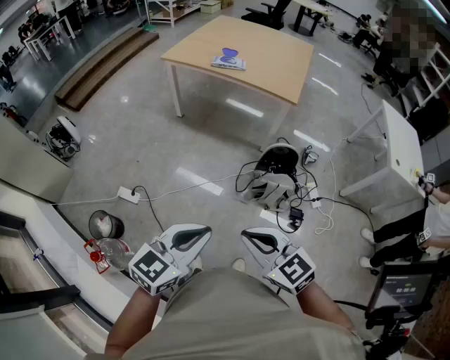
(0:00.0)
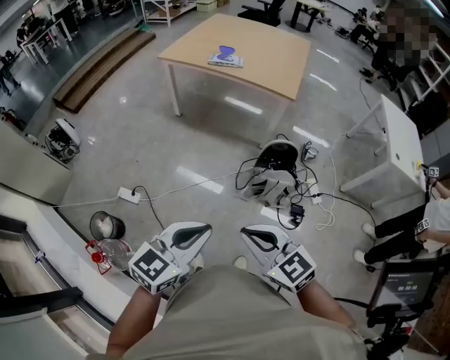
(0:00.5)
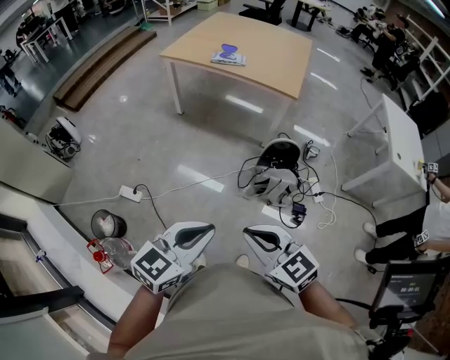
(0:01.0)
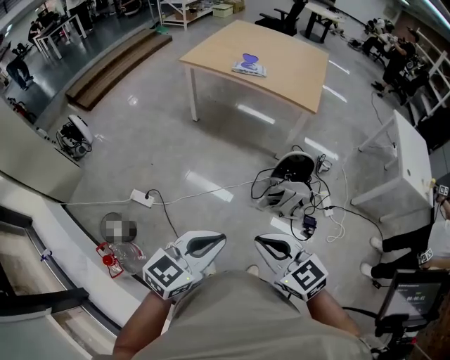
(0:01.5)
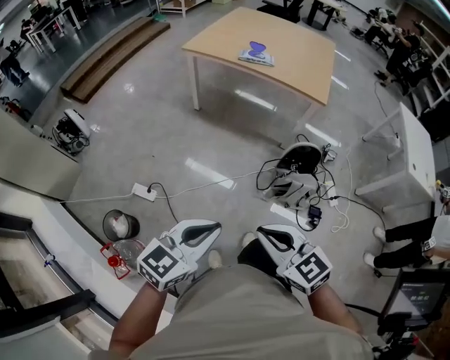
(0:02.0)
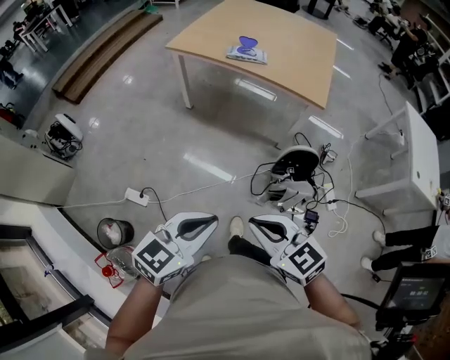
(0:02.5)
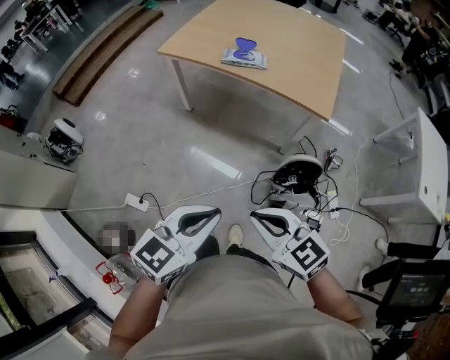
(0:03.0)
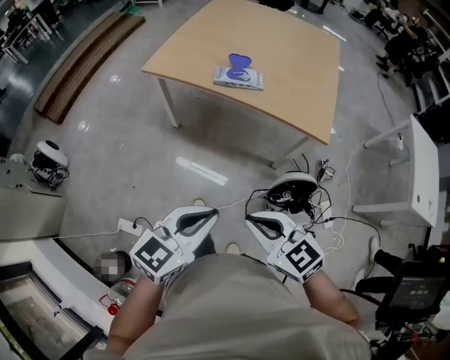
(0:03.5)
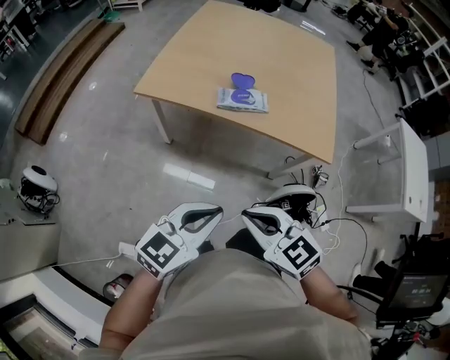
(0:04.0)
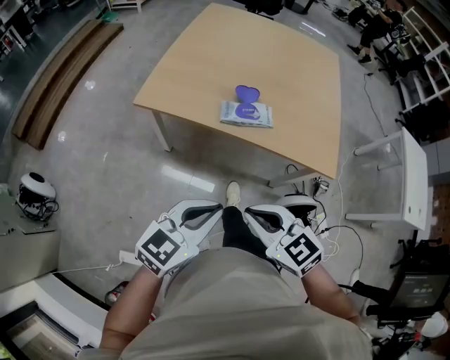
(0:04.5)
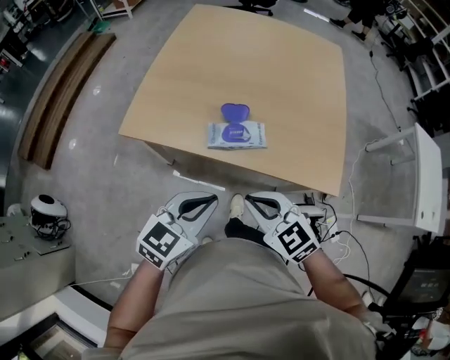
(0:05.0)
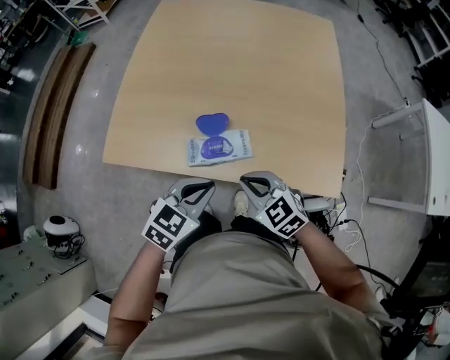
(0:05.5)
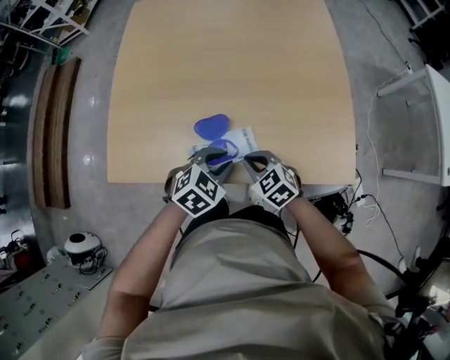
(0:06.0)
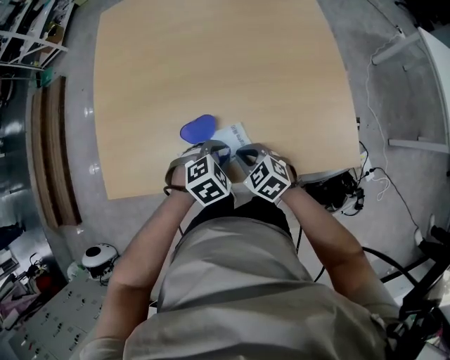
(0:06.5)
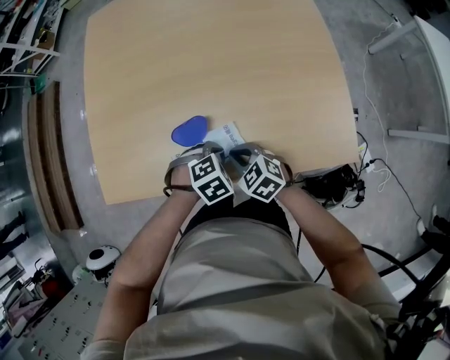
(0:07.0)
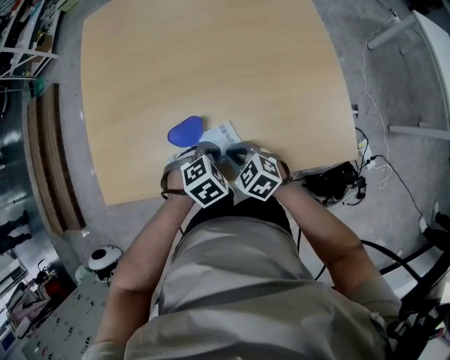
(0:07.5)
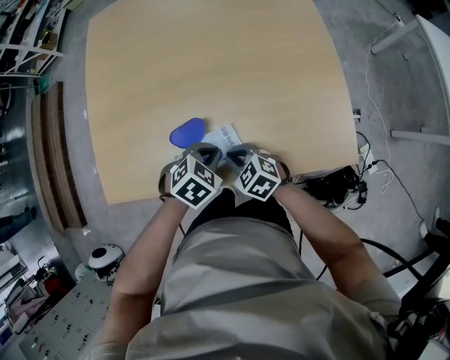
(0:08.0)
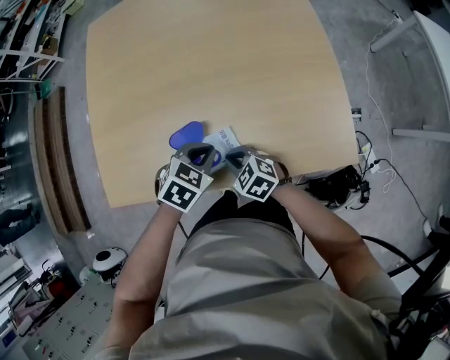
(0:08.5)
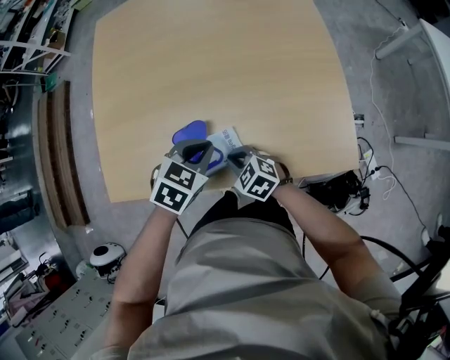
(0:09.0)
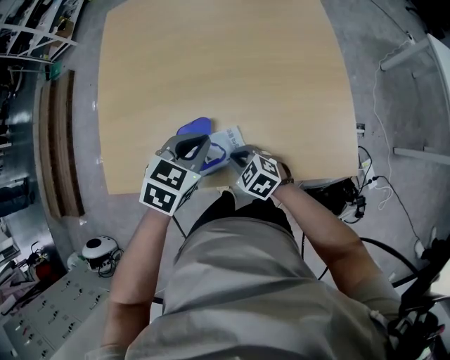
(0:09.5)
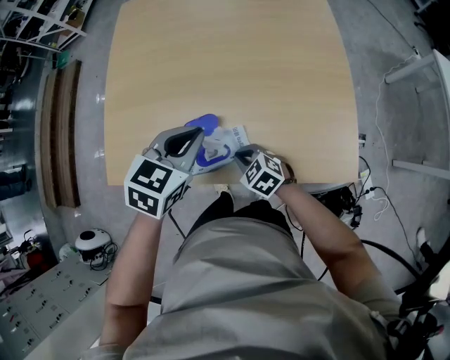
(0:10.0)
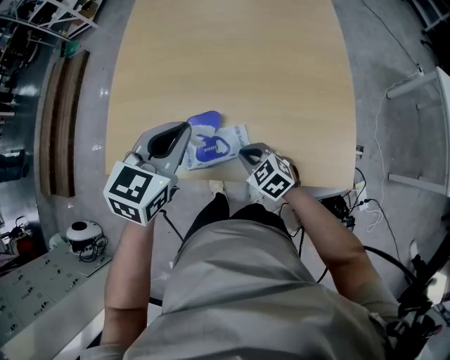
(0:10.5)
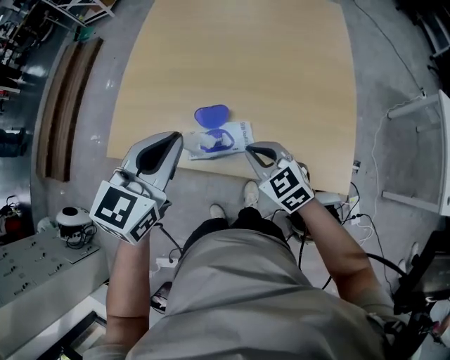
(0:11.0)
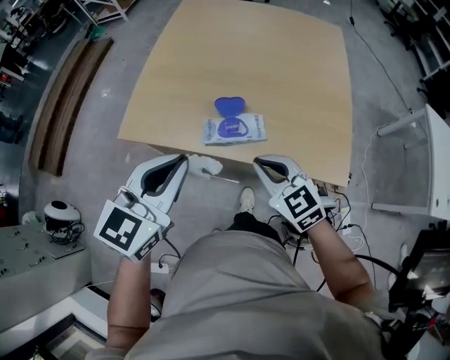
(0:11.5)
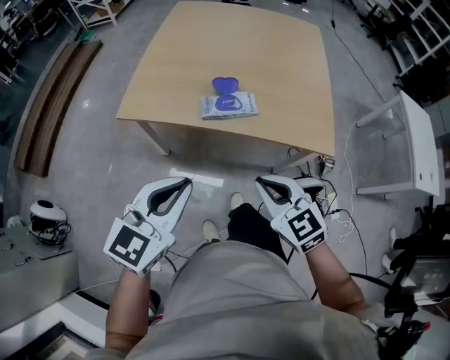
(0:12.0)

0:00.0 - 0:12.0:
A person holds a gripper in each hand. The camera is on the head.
0:00.0 - 0:02.0: The grippers both shift to the left and forward by some 15 cm.
0:02.0 - 0:04.0: The pair of grippers is taken forward, roughly 60 cm.
0:04.0 - 0:06.0: The two grippers travel together, forward, roughly 50 cm. The left gripper points its fingers approximately 40 degrees further downward, and opens its fingers, while the right gripper heads downward, covering approximately 25 cm, and turns by roughly 20 degrees.
0:06.0 - 0:08.0: Both grippers move downward, approximately 5 cm.
0:08.0 - 0:10.0: The left gripper is displaced upward by some 15 cm, and changes its angle by approximately 30 degrees.
0:10.0 - 0:12.0: The left gripper moves backward and to the left, about 50 cm, and changes its angle by approximately 30 degrees, while the right gripper travels backward and upward by about 40 cm, and turns by approximately 20 degrees.

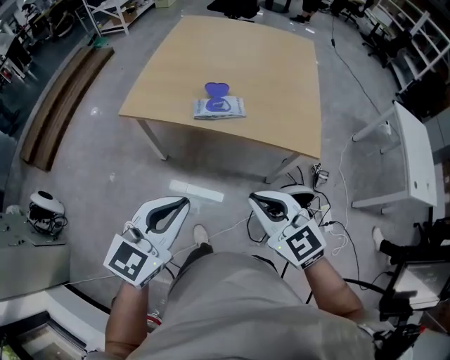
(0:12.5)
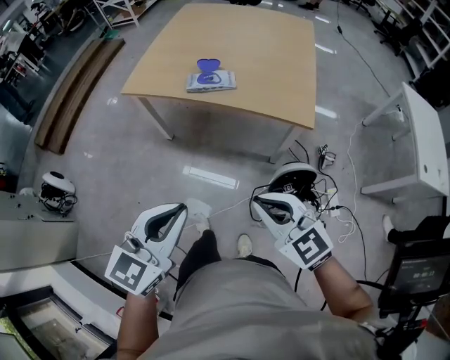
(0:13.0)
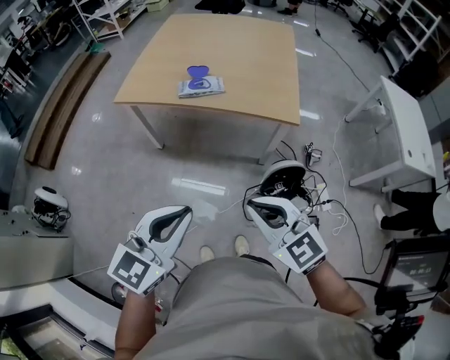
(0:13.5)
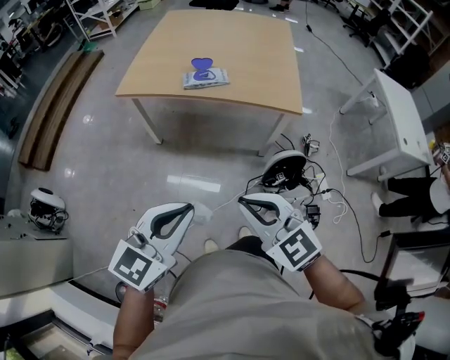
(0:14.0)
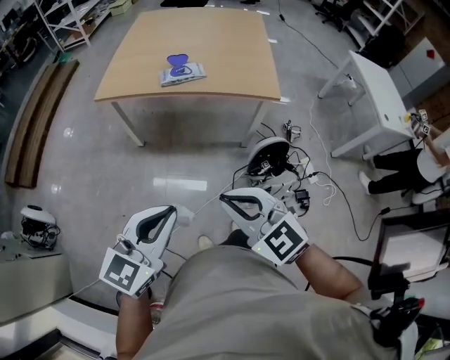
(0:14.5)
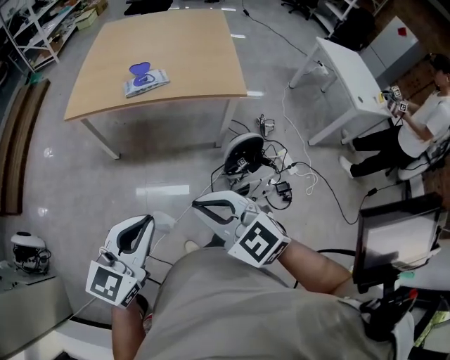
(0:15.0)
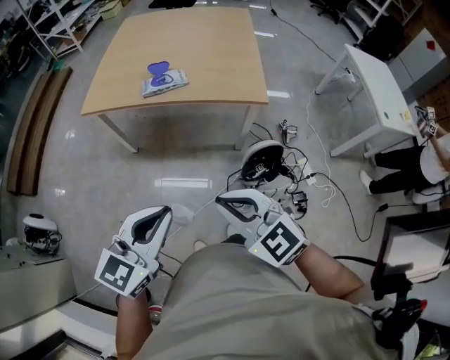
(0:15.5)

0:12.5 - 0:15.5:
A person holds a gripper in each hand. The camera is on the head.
0:12.5 - 0:14.0: Both grippers move backward, some 25 cm.
0:14.0 - 0:15.5: The grippers move only a little.

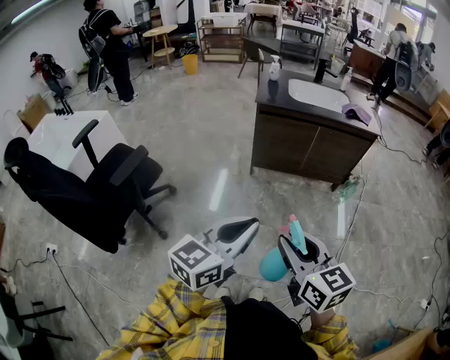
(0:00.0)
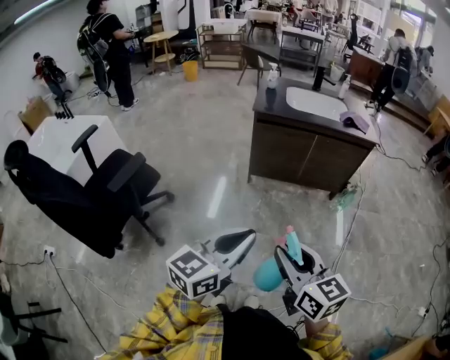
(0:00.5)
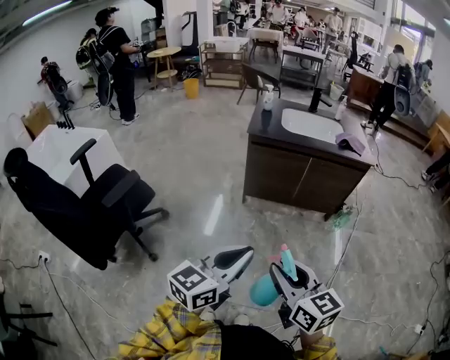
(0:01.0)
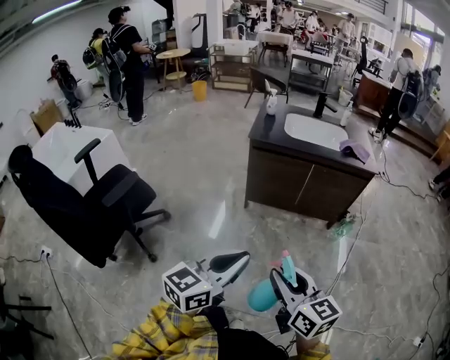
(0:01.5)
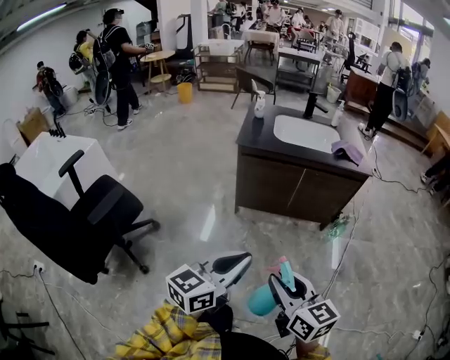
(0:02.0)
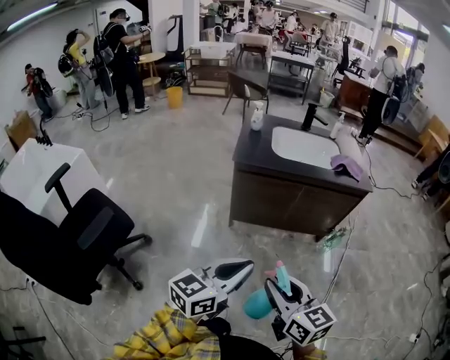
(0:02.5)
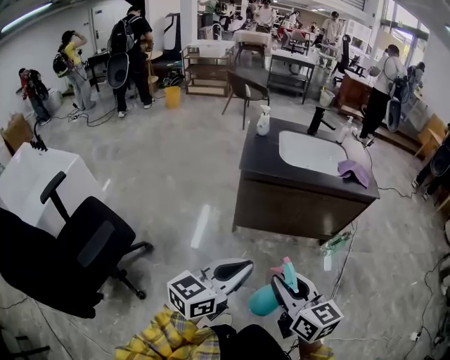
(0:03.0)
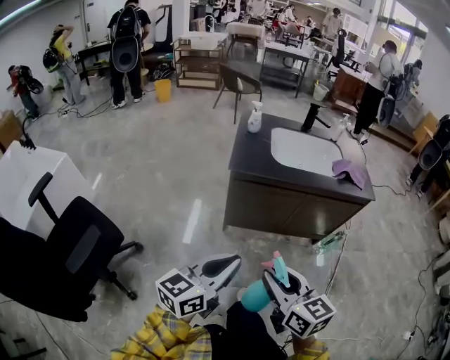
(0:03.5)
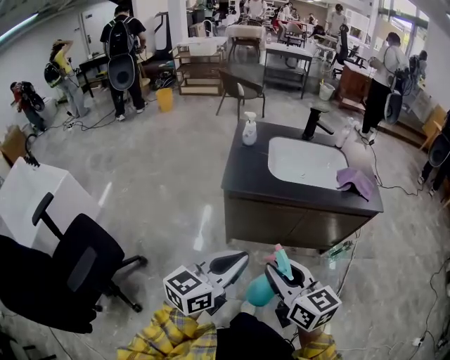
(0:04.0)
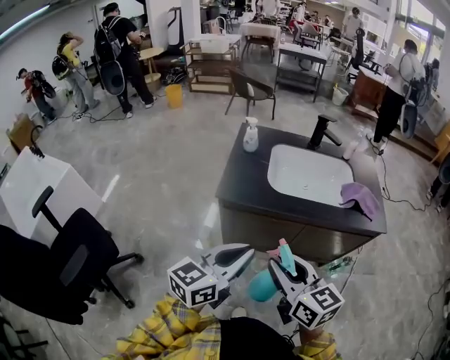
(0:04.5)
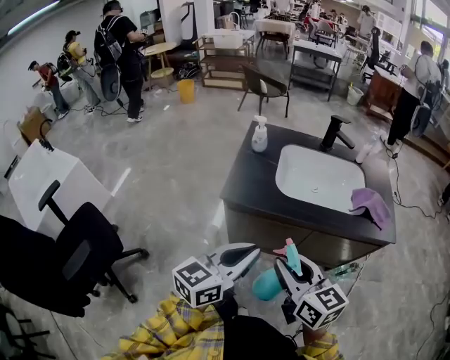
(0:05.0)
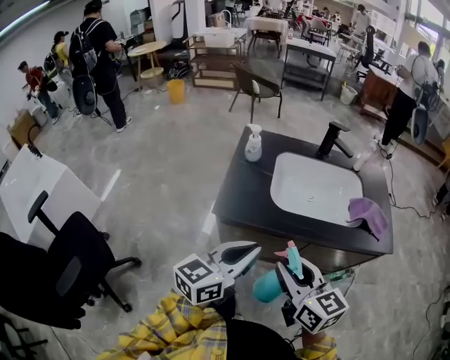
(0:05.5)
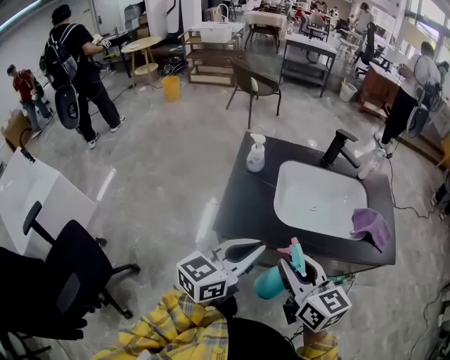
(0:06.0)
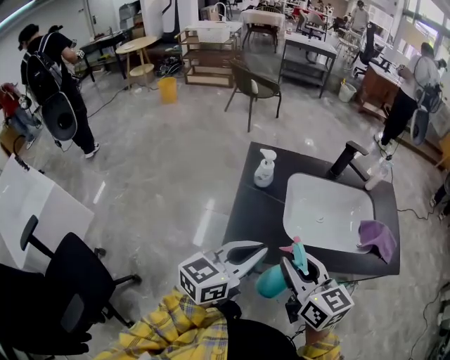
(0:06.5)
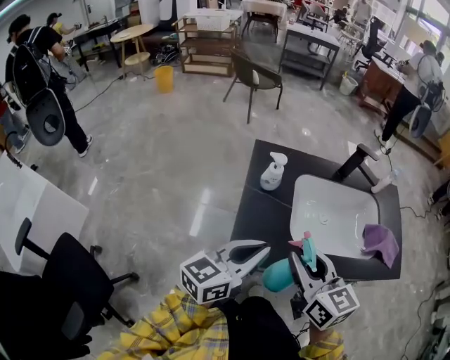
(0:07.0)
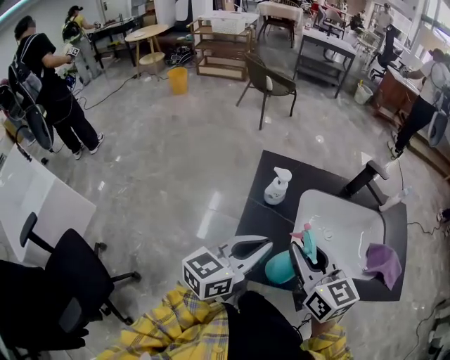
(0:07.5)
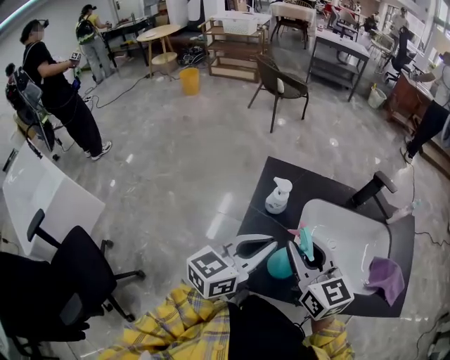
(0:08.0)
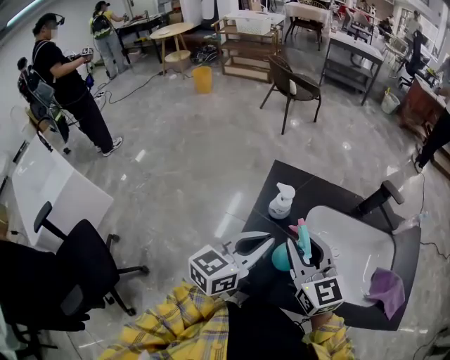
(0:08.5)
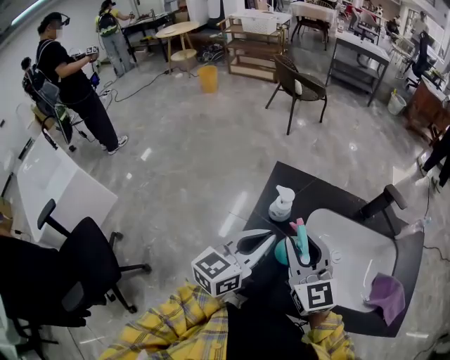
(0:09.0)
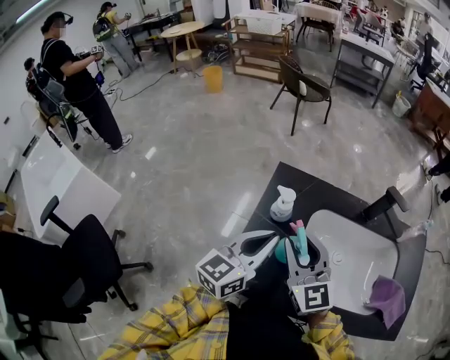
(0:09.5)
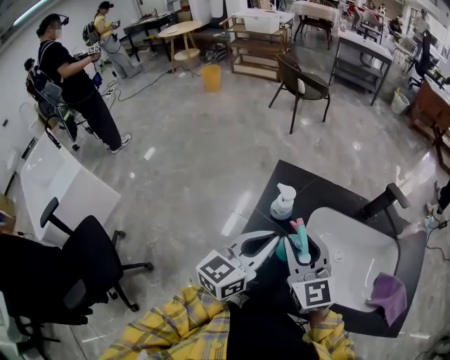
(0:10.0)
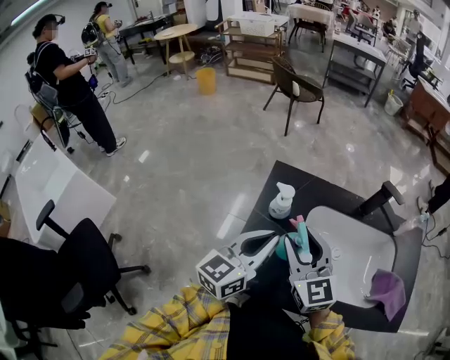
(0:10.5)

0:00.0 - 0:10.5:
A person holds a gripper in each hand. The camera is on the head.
0:00.0 - 0:02.0: The two grippers go about 15 cm forward and to the right.
0:02.0 - 0:04.0: Both grippers move forward, approximately 30 cm.
0:04.0 - 0:06.5: Both grippers move forward, approximately 35 cm.
0:06.5 - 0:08.5: The grippers both shift forward by roughly 20 cm.
0:08.5 - 0:10.5: The grippers make only small movements.

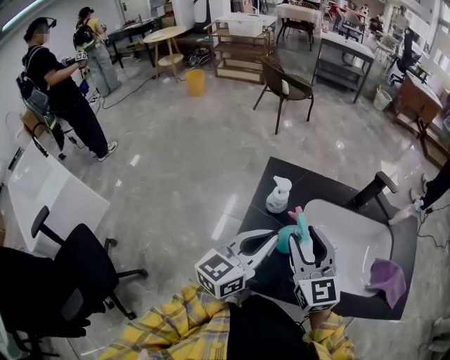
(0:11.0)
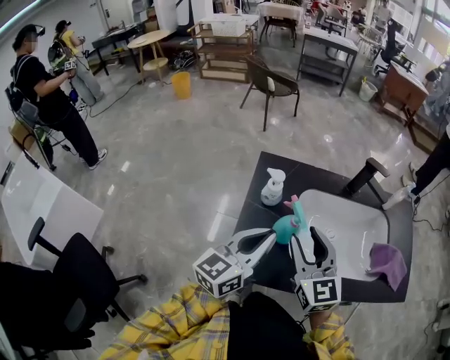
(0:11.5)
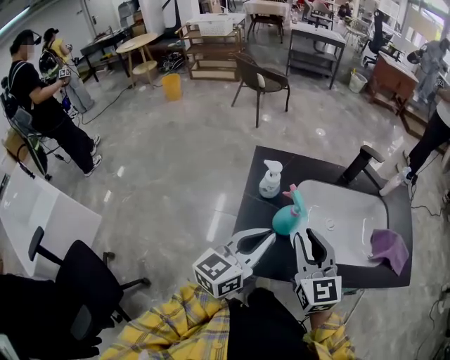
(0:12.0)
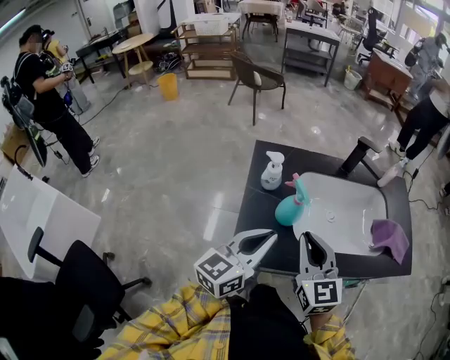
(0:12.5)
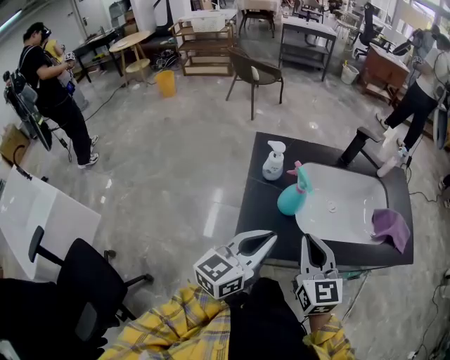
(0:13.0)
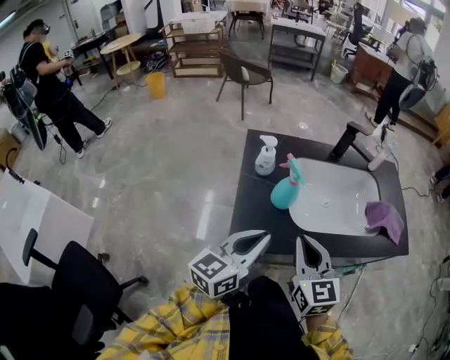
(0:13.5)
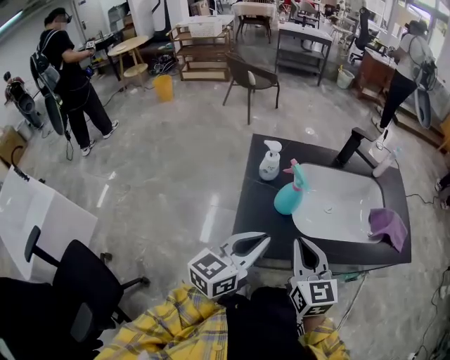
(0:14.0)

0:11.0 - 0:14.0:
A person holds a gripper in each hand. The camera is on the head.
0:11.0 - 0:12.5: Both grippers travel together backward, approximately 10 cm. The right gripper closes up.
0:12.5 - 0:14.0: The right gripper heads backward, covering about 5 cm.
